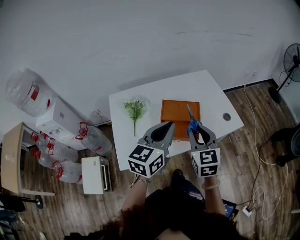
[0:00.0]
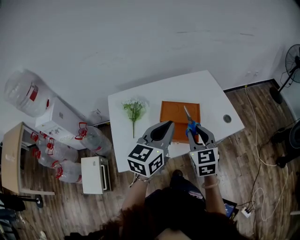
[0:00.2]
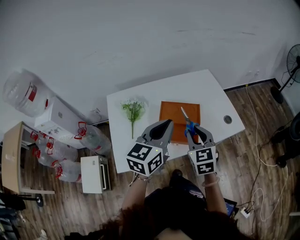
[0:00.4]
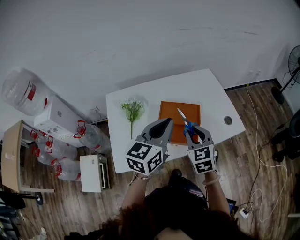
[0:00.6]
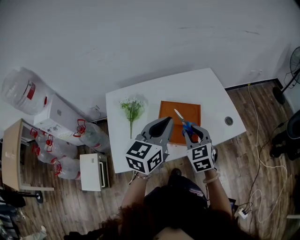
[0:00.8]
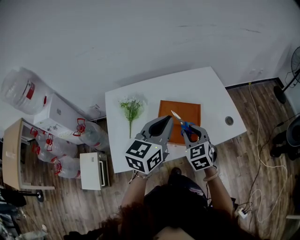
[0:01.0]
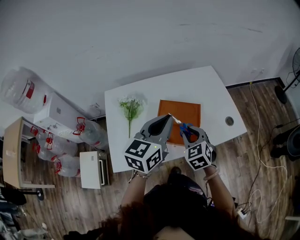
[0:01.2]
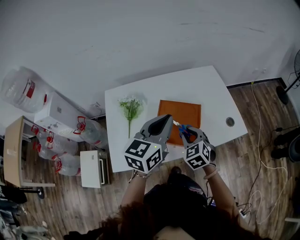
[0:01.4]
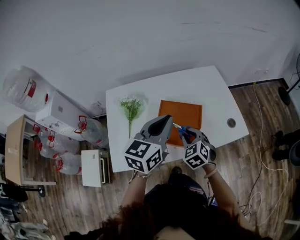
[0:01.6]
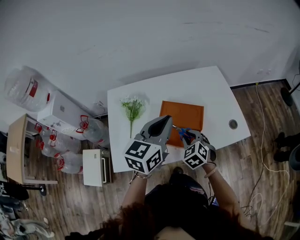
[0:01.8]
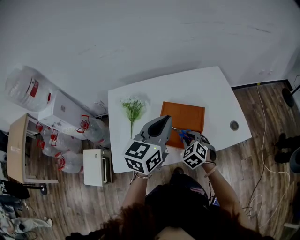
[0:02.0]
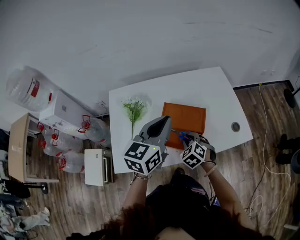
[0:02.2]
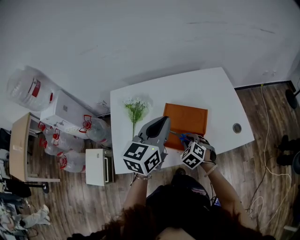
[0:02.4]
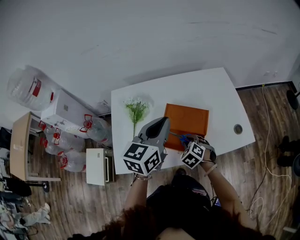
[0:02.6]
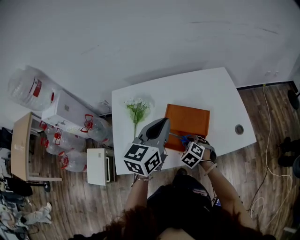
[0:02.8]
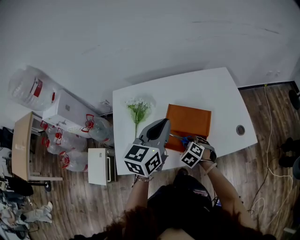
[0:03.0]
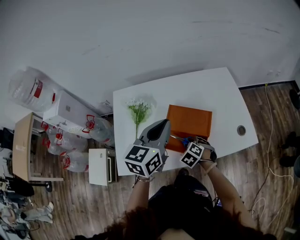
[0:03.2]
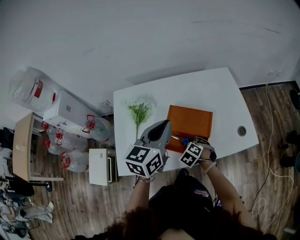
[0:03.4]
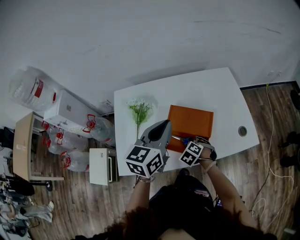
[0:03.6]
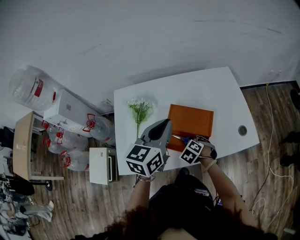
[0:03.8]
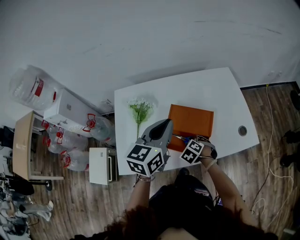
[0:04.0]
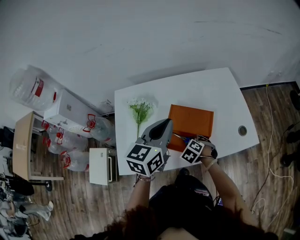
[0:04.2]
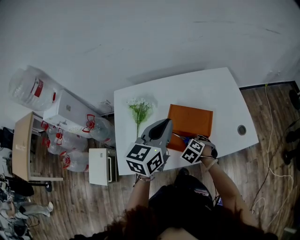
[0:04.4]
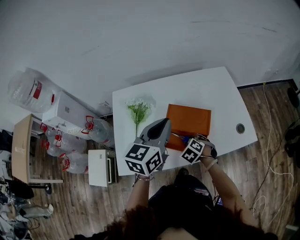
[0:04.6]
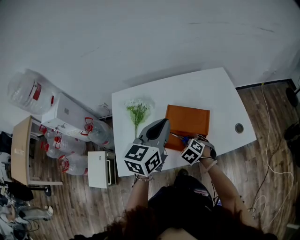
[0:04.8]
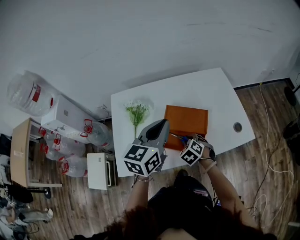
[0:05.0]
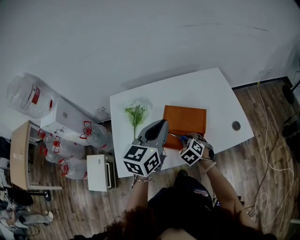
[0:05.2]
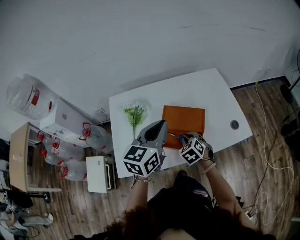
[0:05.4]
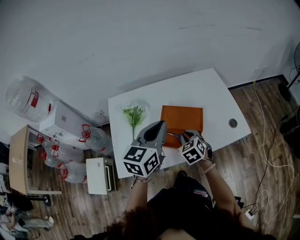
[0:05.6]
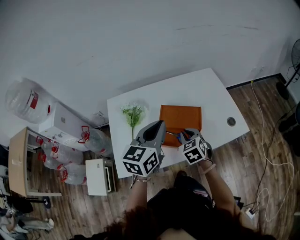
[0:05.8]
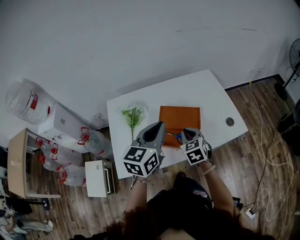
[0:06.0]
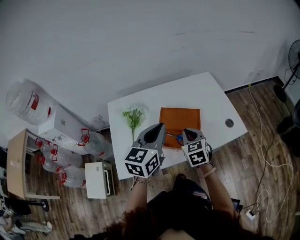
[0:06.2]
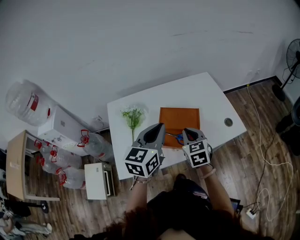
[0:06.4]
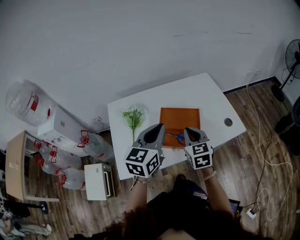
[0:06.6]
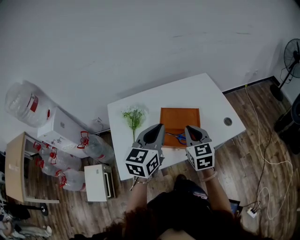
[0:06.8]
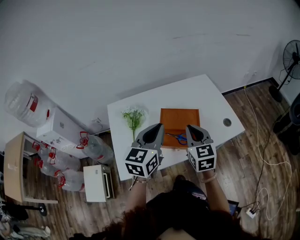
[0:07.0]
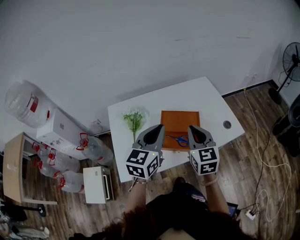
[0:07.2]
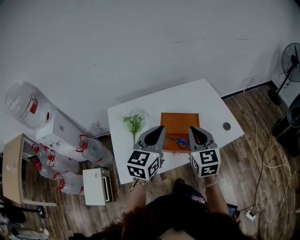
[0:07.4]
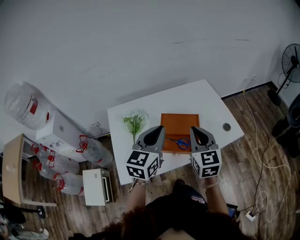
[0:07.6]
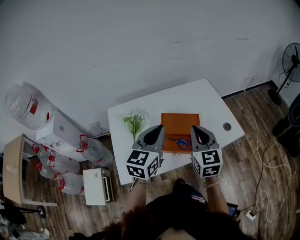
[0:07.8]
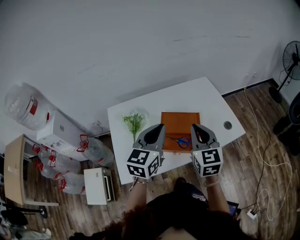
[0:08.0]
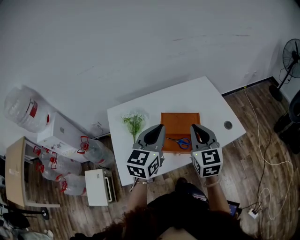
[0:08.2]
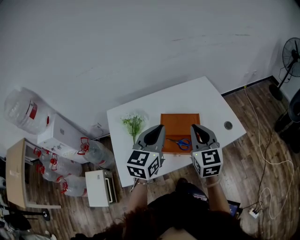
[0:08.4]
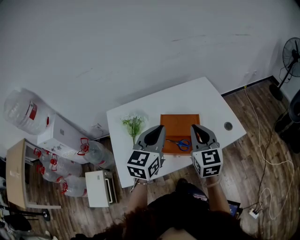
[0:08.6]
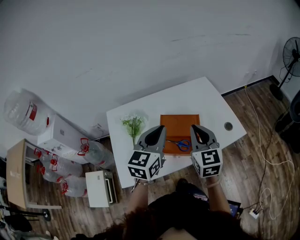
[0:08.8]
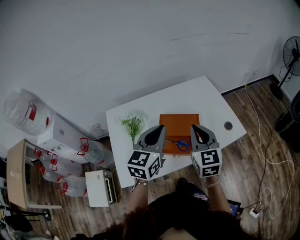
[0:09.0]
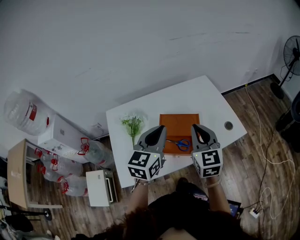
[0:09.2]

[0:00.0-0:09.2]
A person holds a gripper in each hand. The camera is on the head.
0:00.0 to 0:01.6: The right gripper goes roughly 15 cm downward and forward, and swivels approximately 40 degrees; the left gripper moves forward, approximately 10 cm.
0:01.6 to 0:03.0: The right gripper shifts roughly 10 cm downward, and rotates approximately 20 degrees; the left gripper shifts by about 5 cm.
0:03.0 to 0:04.6: The grippers move only a little.
0:04.6 to 0:06.2: The left gripper travels backward by some 5 cm; the right gripper heads upward, covering approximately 15 cm, angles its fingers upward, by roughly 30 degrees, and closes.
0:06.2 to 0:07.6: The right gripper heads upward, covering approximately 10 cm, and rotates some 20 degrees.
0:07.6 to 0:09.2: There are only small adjustments of the grippers.

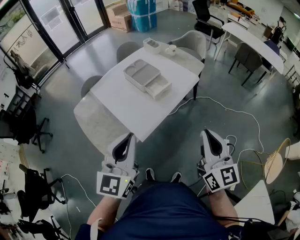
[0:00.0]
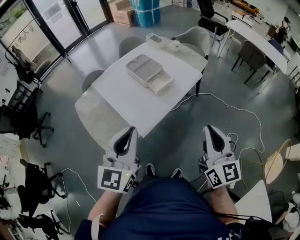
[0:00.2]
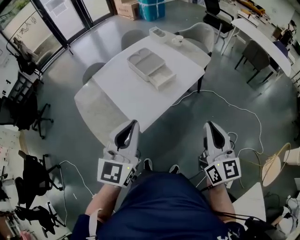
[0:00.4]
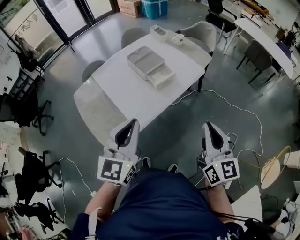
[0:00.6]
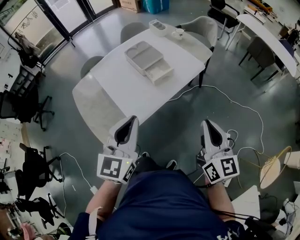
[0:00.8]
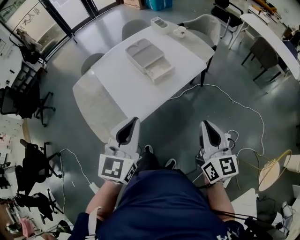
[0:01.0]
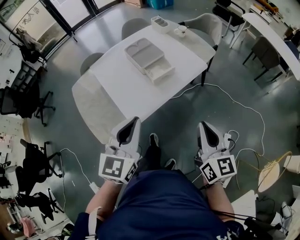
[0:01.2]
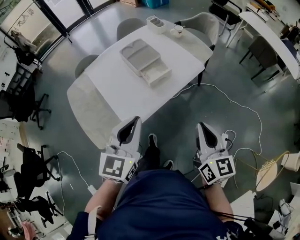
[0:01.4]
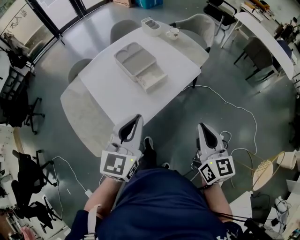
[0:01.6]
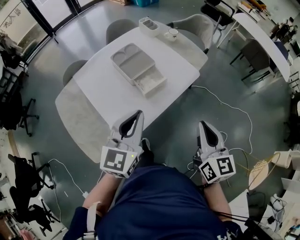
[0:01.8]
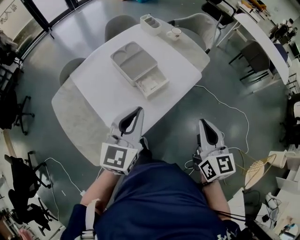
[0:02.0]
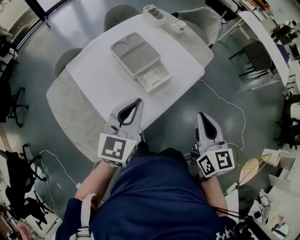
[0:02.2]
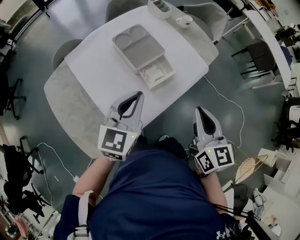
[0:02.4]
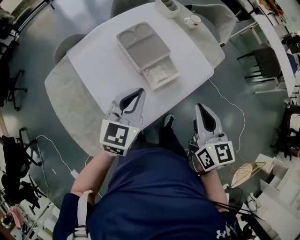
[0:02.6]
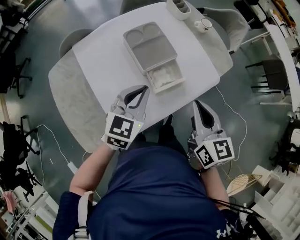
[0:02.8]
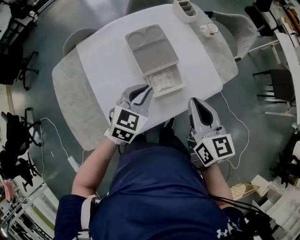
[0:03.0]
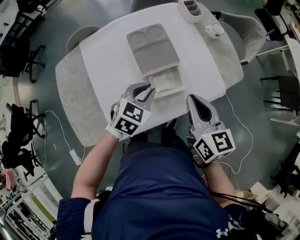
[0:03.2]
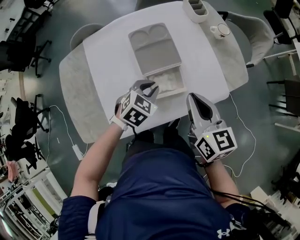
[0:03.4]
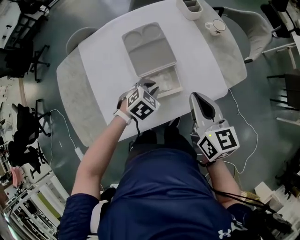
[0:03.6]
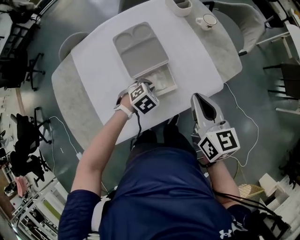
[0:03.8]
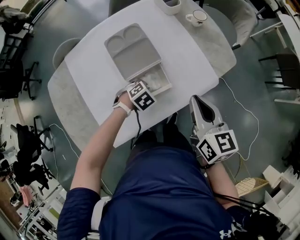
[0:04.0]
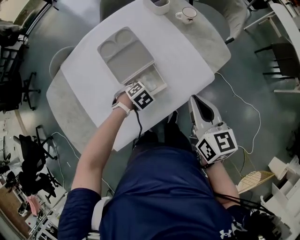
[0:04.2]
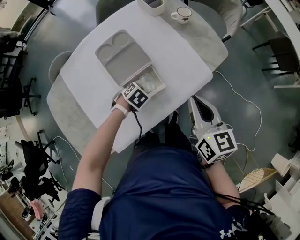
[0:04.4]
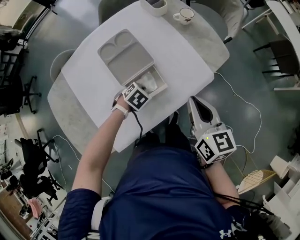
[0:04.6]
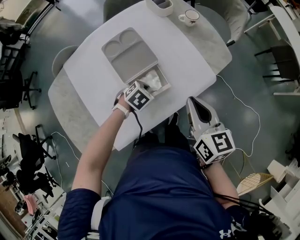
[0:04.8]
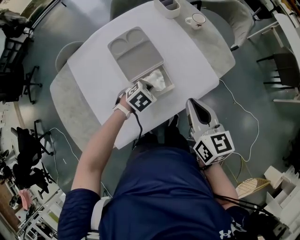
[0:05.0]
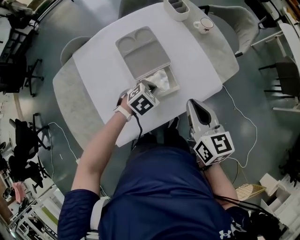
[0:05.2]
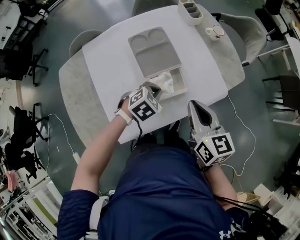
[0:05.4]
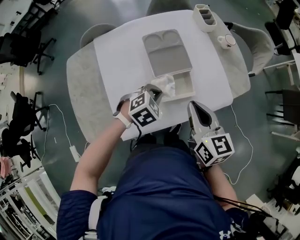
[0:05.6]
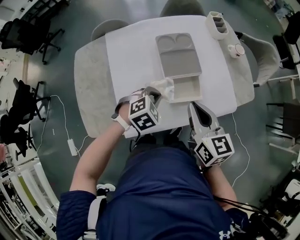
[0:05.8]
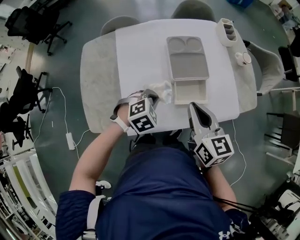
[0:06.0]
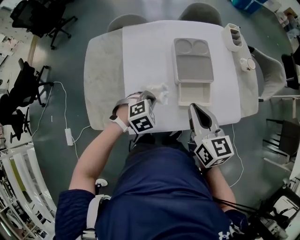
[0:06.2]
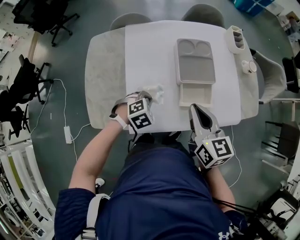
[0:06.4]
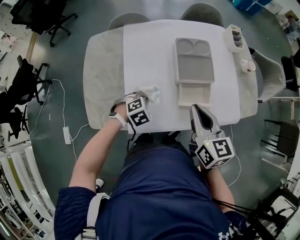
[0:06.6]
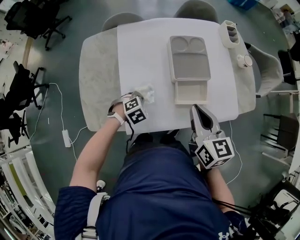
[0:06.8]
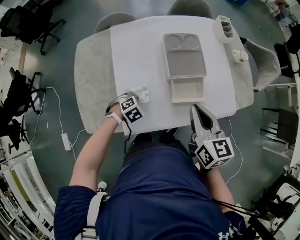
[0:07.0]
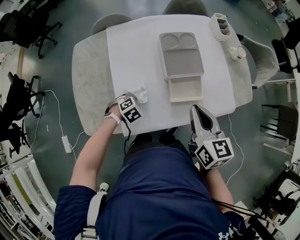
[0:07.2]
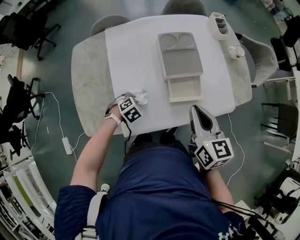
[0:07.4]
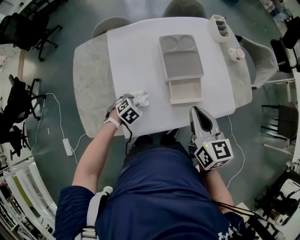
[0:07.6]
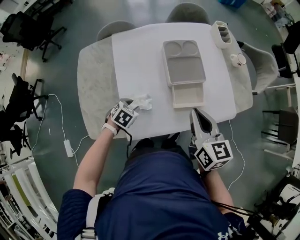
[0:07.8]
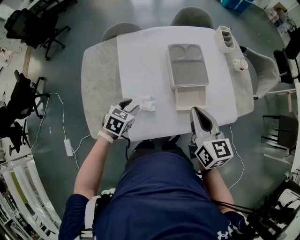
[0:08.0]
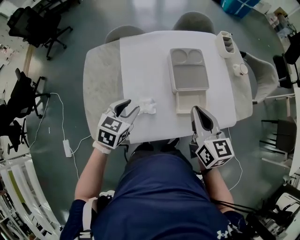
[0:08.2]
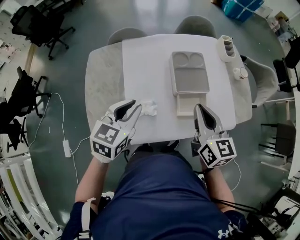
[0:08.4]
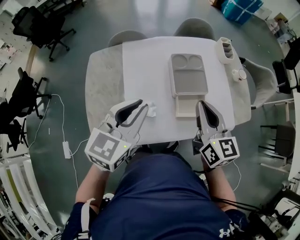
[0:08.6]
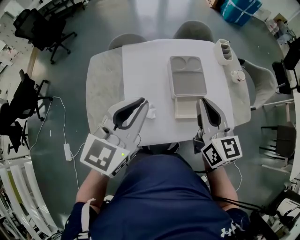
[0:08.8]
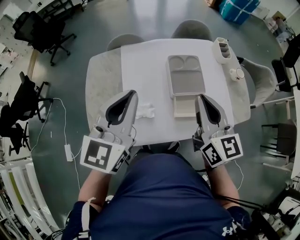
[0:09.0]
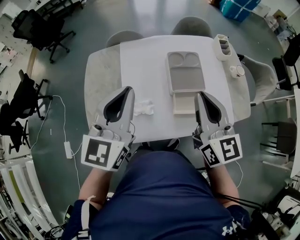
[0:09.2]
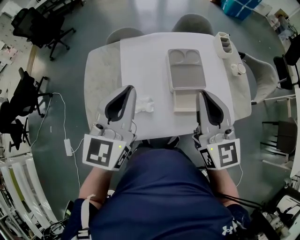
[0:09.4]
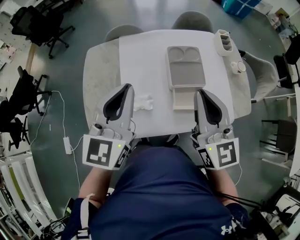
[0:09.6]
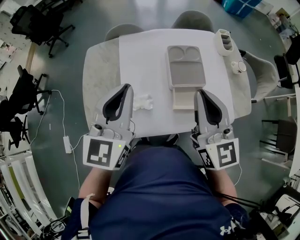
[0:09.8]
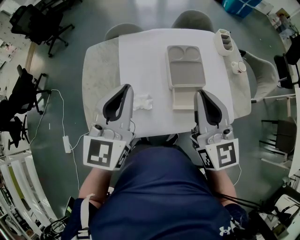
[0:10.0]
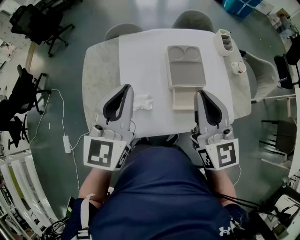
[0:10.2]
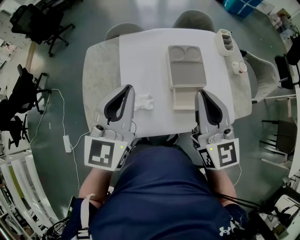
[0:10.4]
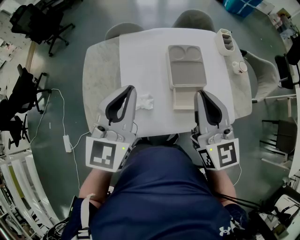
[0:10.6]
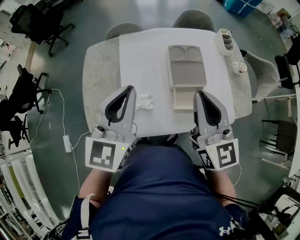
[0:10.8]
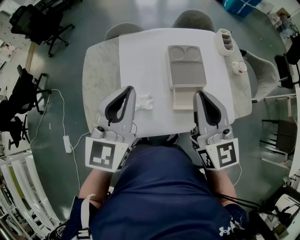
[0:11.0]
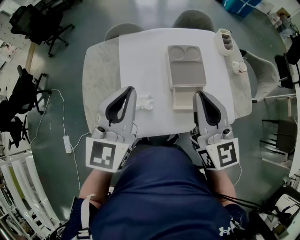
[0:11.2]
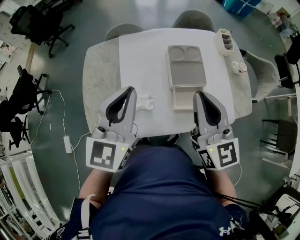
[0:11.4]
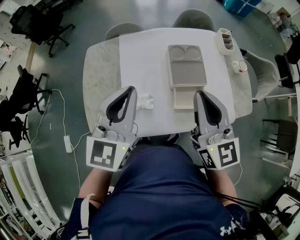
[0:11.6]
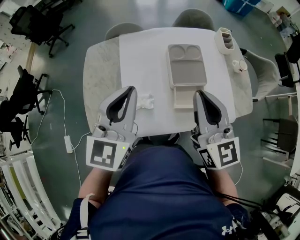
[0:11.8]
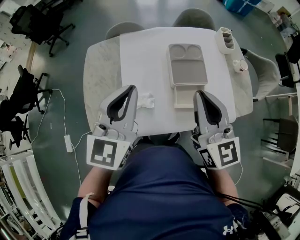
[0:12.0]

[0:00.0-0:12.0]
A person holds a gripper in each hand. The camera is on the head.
0:00.0 to 0:01.6: The right gripper shifts about 15 cm forward and downward, while the left gripper shifts about 20 cm forward, to the right and downward.
0:01.6 to 0:03.0: The left gripper is displaced forward and downward by roughly 30 cm, and swivels about 20 degrees. Meanwhile the right gripper goes roughly 30 cm forward and to the left, and swivels roughly 20 degrees.
0:03.0 to 0:04.4: The left gripper is displaced downward by some 20 cm, and points its fingers approximately 50 degrees further downward; the right gripper shifts by about 10 cm.
0:04.4 to 0:06.0: The right gripper moves roughly 20 cm, and changes its angle by approximately 30 degrees, while the left gripper shifts by about 20 cm, and changes its angle by some 20 degrees.
0:06.0 to 0:07.6: The left gripper moves downward, some 15 cm, changes its angle by approximately 20 degrees, and opens.
0:07.6 to 0:09.0: The right gripper goes roughly 15 cm upward. The left gripper heads upward, covering roughly 40 cm, points its fingers some 70 degrees further upward, and closes.
0:09.0 to 0:10.4: There are only small adjustments of the grippers.
0:10.4 to 0:12.0: The two grippers keep their place.

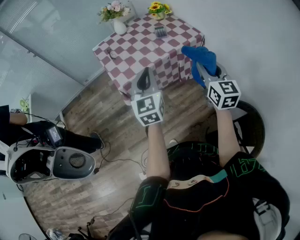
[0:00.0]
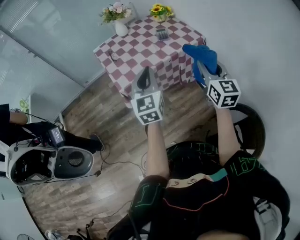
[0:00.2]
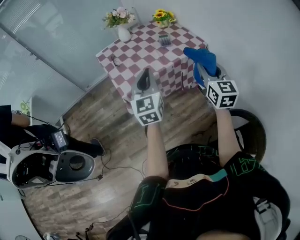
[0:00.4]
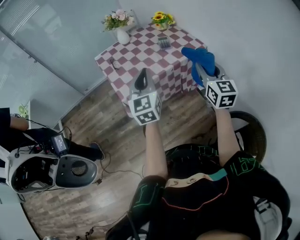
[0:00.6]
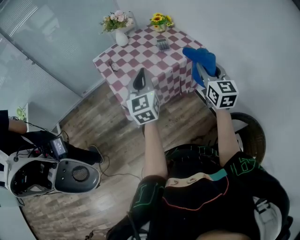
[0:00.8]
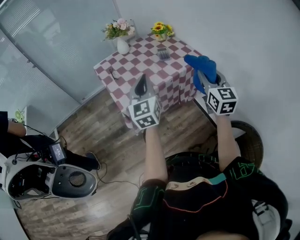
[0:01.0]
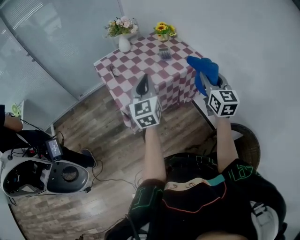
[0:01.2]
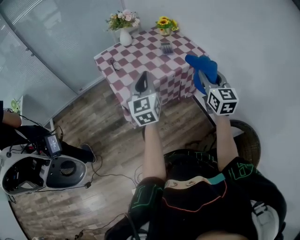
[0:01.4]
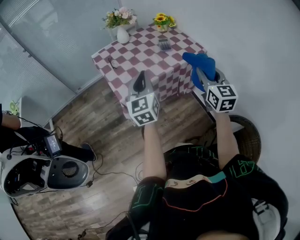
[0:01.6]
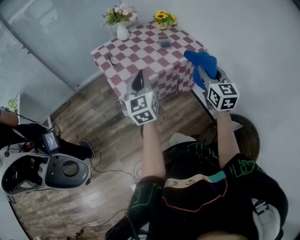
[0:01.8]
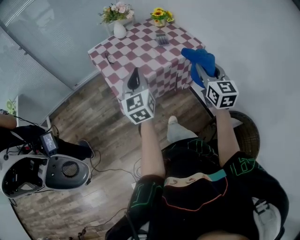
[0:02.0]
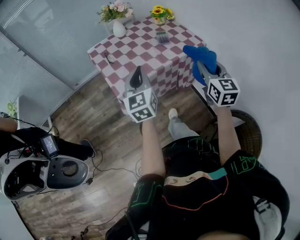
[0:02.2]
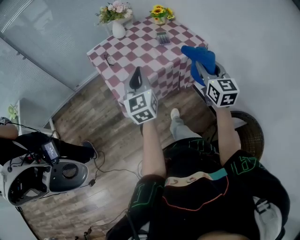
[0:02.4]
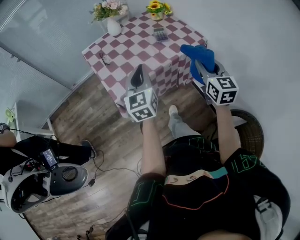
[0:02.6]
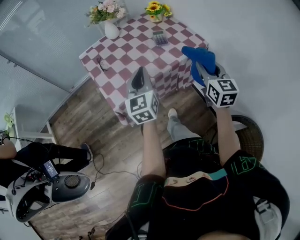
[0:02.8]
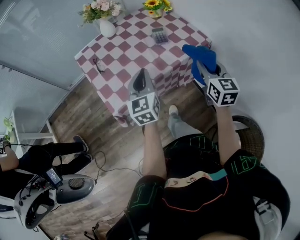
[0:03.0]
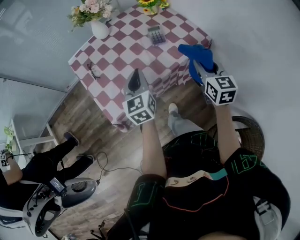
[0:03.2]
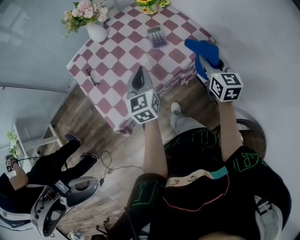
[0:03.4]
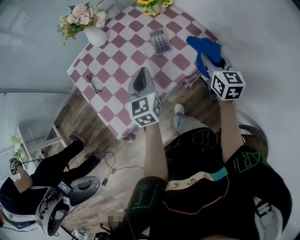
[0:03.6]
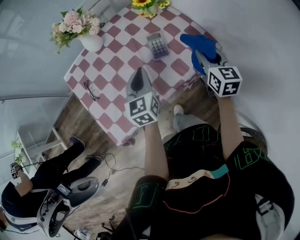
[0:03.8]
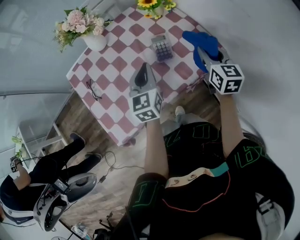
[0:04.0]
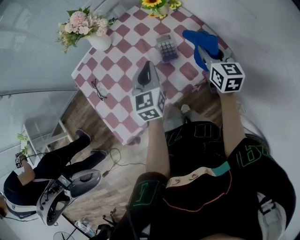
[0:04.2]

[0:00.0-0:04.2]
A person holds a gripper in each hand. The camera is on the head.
0:00.0 to 0:01.4: The right gripper travels forward by about 5 cm; the left gripper goes approximately 10 cm forward and to the left.
0:01.4 to 0:02.8: The grippers both shift forward and downward by approximately 10 cm.
0:02.8 to 0:04.2: Both grippers travel together forward, some 30 cm.
